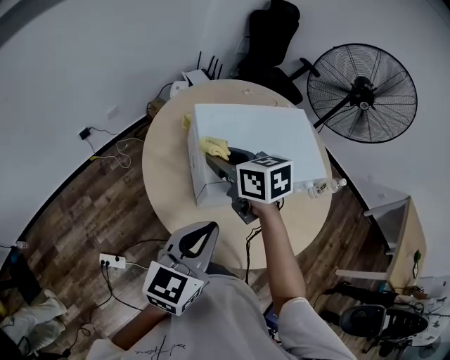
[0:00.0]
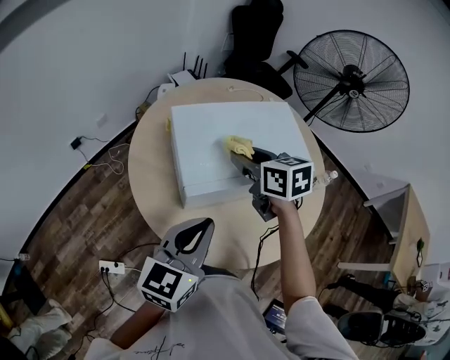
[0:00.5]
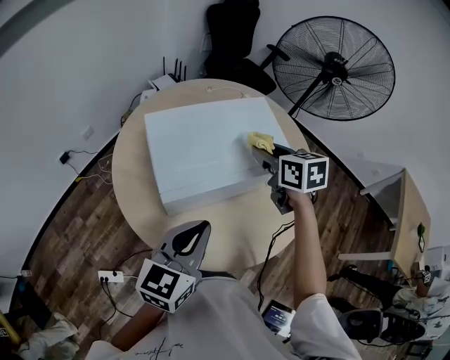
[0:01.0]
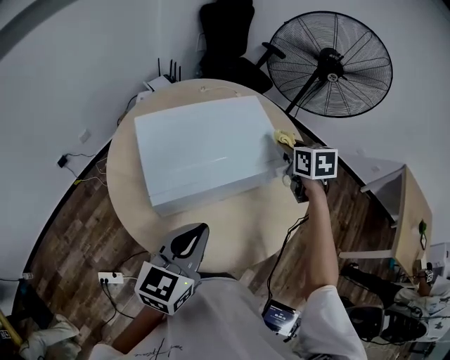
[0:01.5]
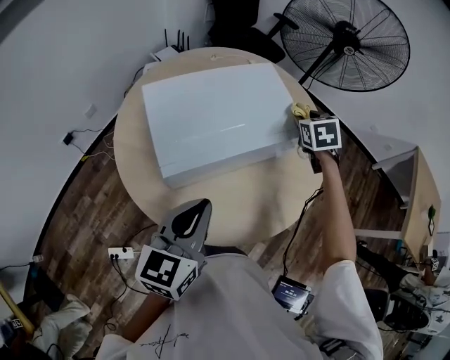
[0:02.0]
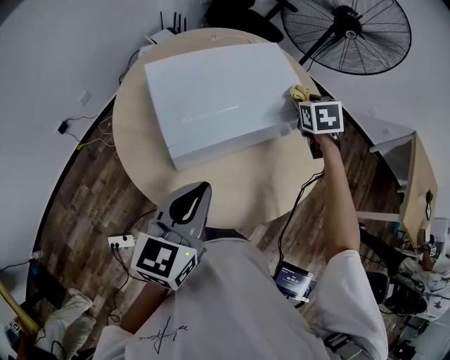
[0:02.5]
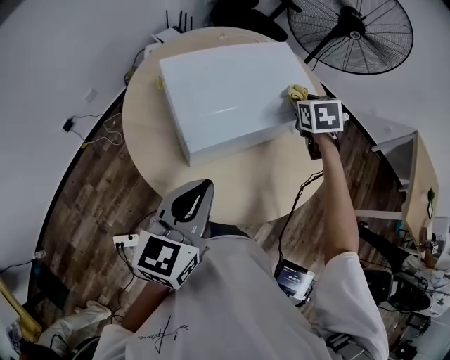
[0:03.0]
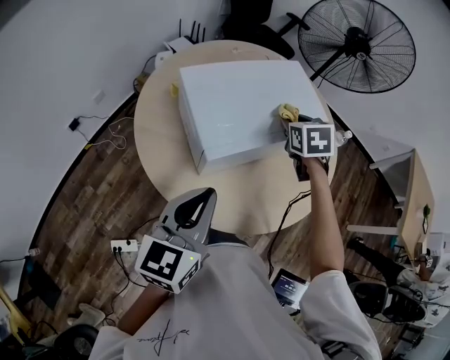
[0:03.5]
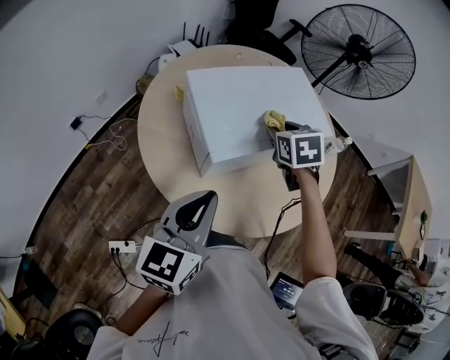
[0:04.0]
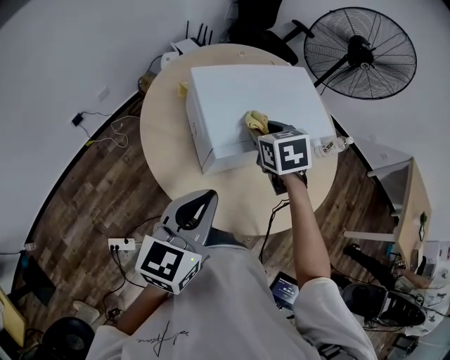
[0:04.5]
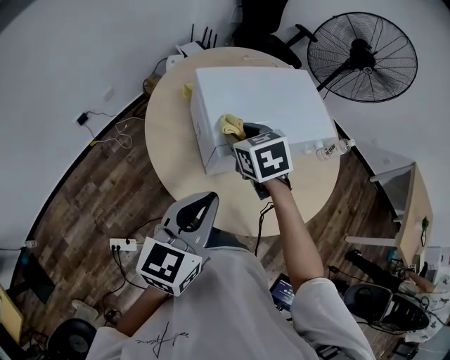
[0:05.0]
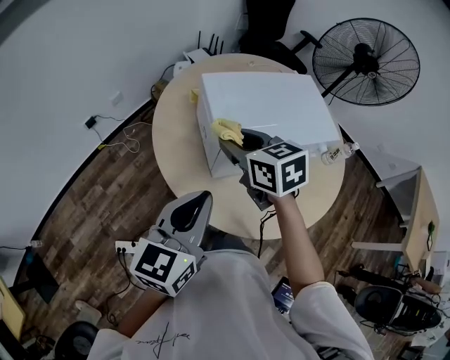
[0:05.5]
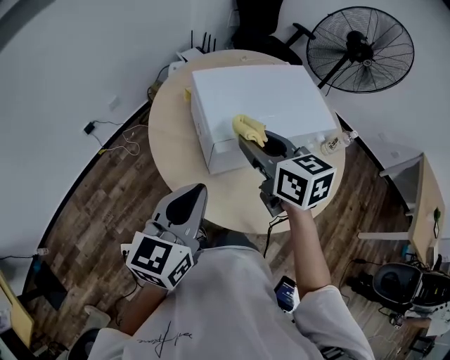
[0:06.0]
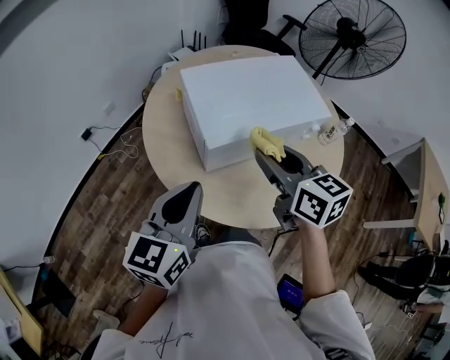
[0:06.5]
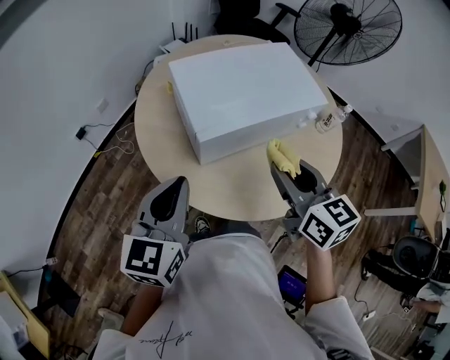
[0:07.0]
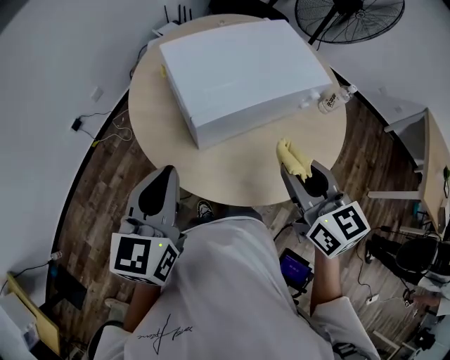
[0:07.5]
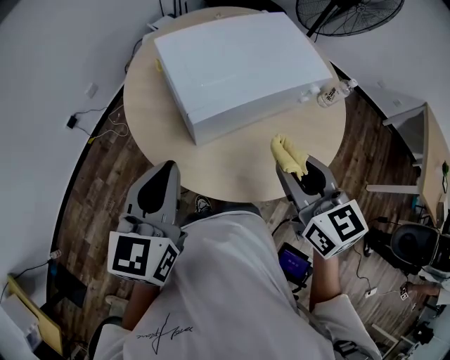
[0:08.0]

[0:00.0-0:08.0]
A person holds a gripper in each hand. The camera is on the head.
0:00.0 to 0:02.0: The left gripper ends up some 10 cm from where it was, while the right gripper moves some 40 cm, and changes its angle by approximately 50 degrees.
0:02.0 to 0:04.0: The right gripper shifts about 25 cm to the left and backward; the left gripper travels to the left and backward by some 10 cm.
0:04.0 to 0:06.0: The right gripper shifts approximately 20 cm backward, to the left and upward, and rotates about 40 degrees.
0:06.0 to 0:08.0: The right gripper goes about 15 cm to the right and backward.

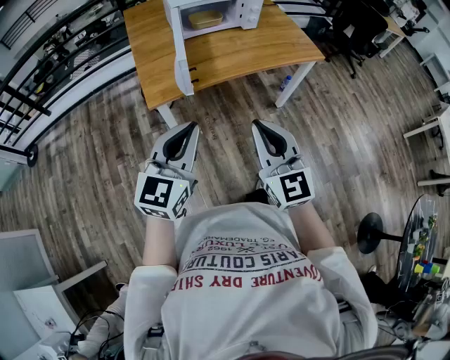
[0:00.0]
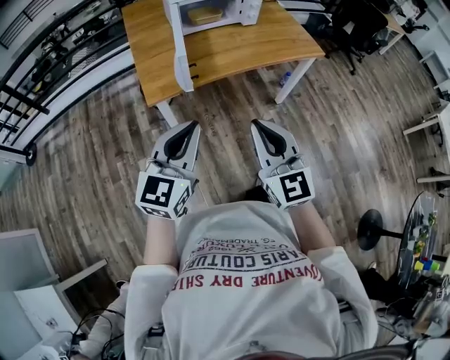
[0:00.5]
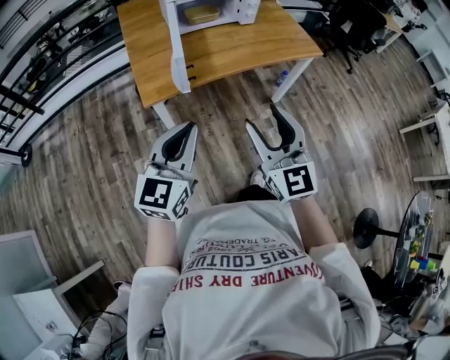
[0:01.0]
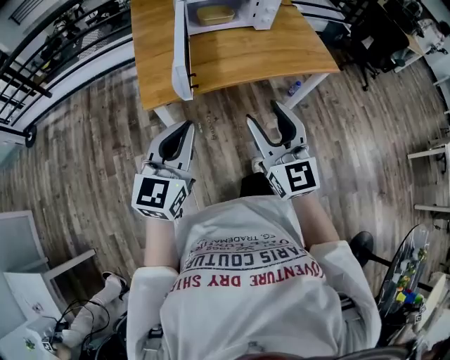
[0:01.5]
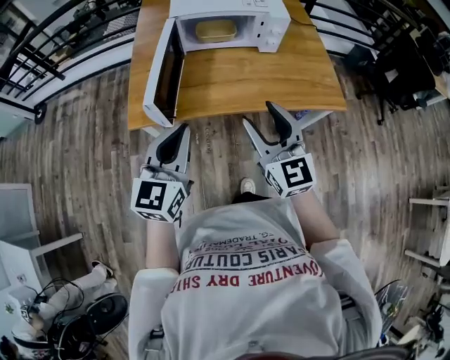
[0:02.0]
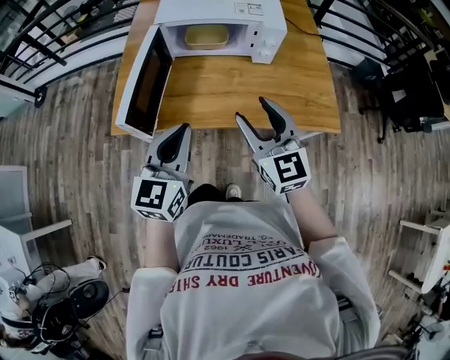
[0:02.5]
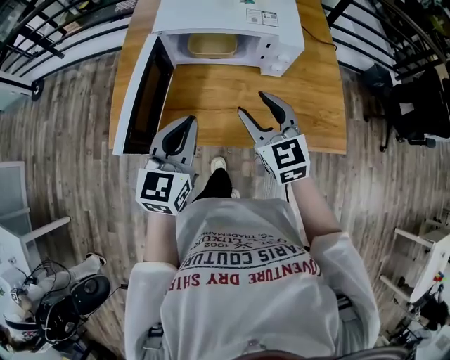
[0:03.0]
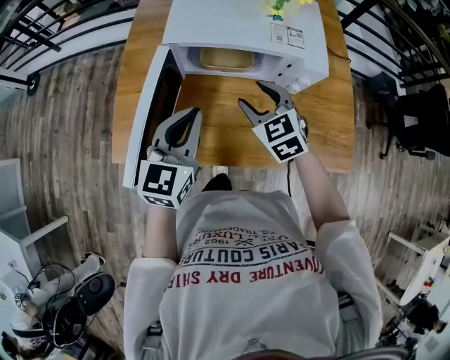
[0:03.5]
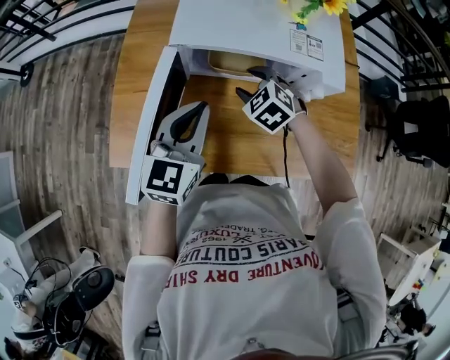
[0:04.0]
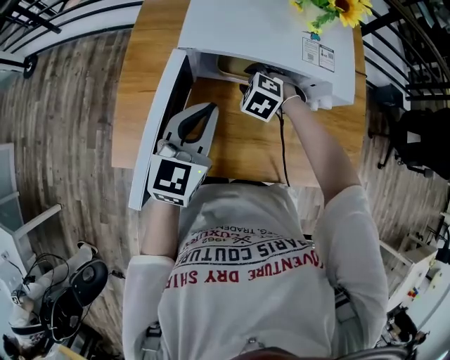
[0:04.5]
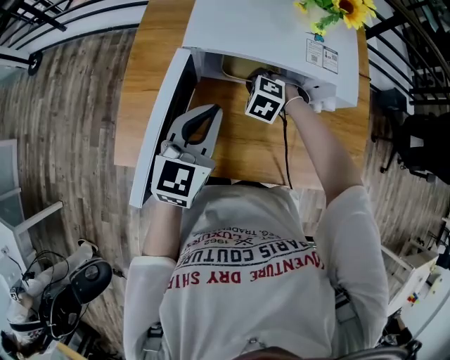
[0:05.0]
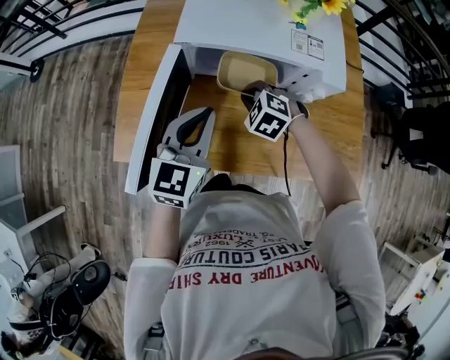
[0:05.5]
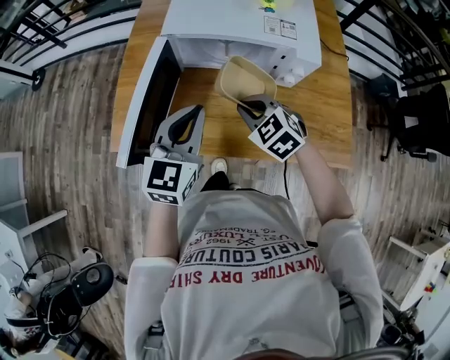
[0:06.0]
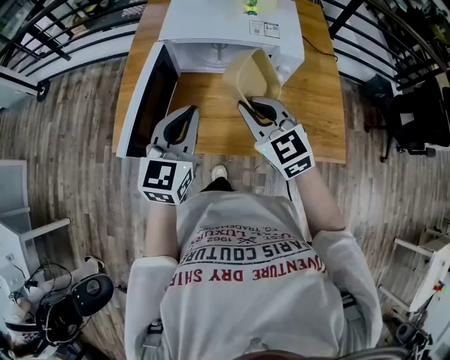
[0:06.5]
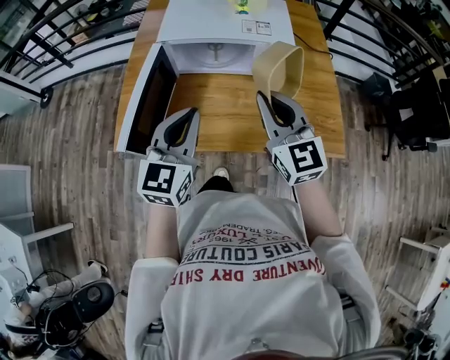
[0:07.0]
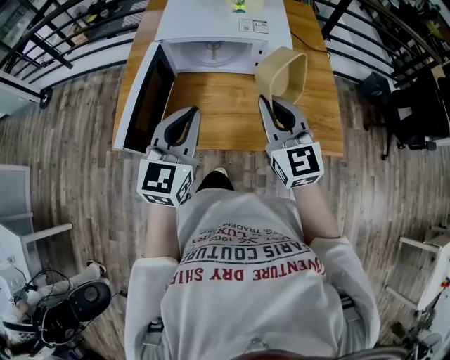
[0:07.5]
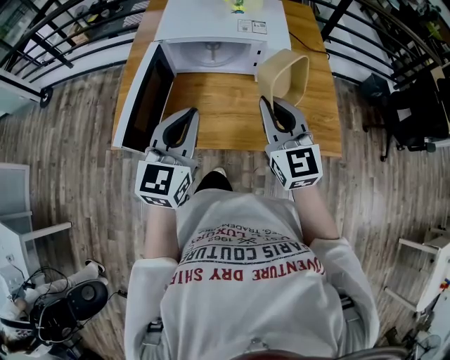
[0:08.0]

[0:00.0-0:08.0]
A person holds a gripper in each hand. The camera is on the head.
0:00.0 to 0:02.0: Both grippers travel together forward and to the right, roughly 25 cm. The right gripper opens, while the left gripper turns by approximately 20 degrees.
0:02.0 to 0:04.0: The left gripper is displaced forward by about 30 cm. Meanwhile the right gripper is displaced forward and downward by approximately 40 cm, and tips its fingers downward by roughly 50 degrees.
0:04.0 to 0:06.0: The left gripper travels backward by roughly 5 cm; the right gripper shifts about 15 cm backward, and closes up.
0:06.0 to 0:08.0: The right gripper shifts roughly 20 cm upward, to the right and backward, and tips its fingers upward by approximately 40 degrees; the left gripper moves backward, roughly 5 cm.

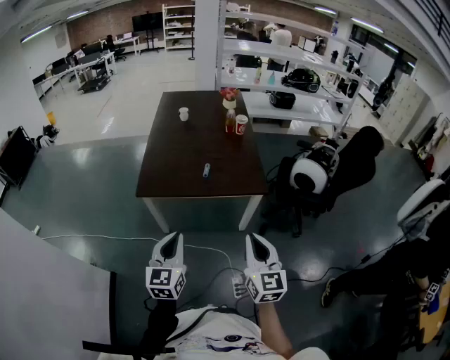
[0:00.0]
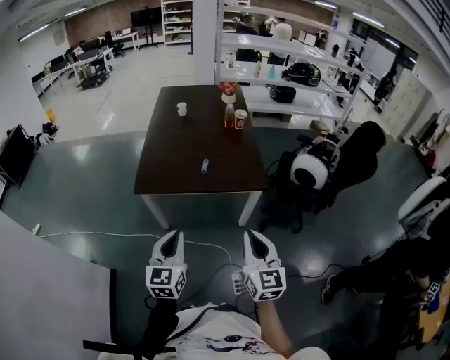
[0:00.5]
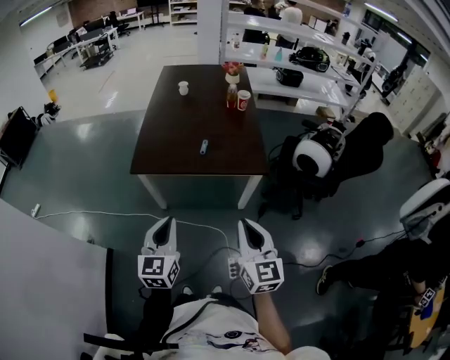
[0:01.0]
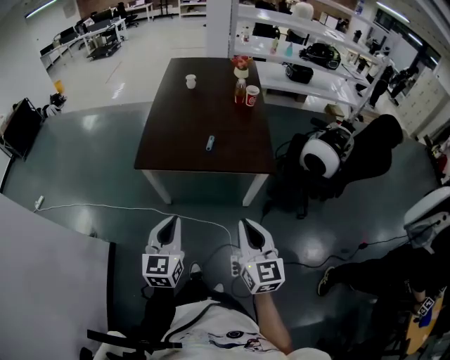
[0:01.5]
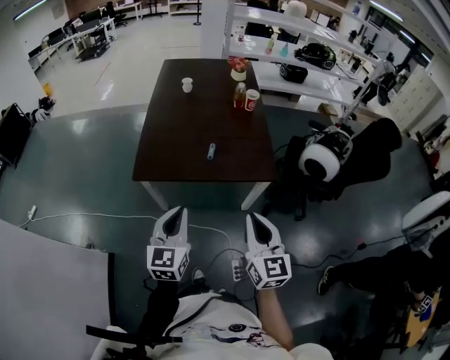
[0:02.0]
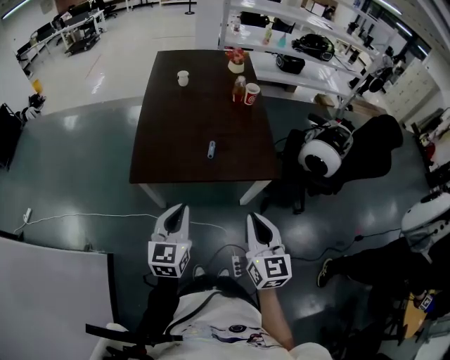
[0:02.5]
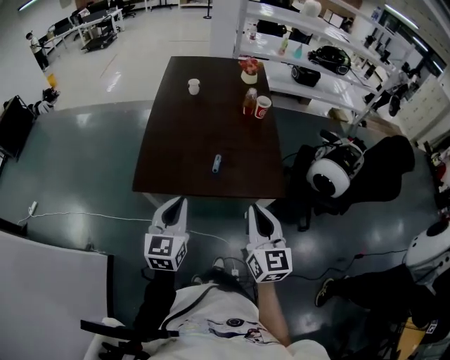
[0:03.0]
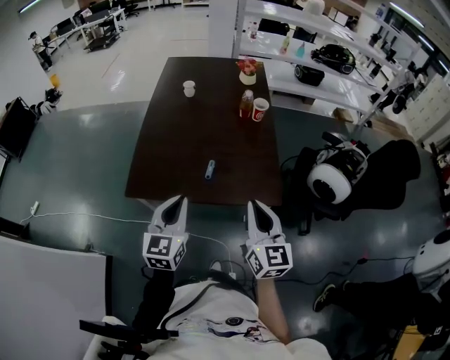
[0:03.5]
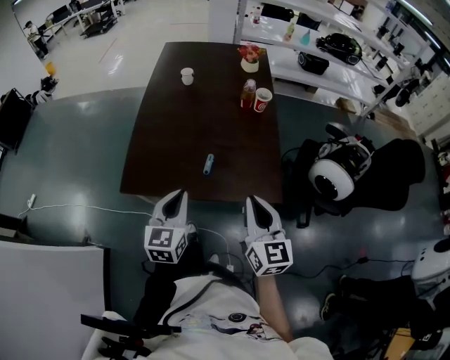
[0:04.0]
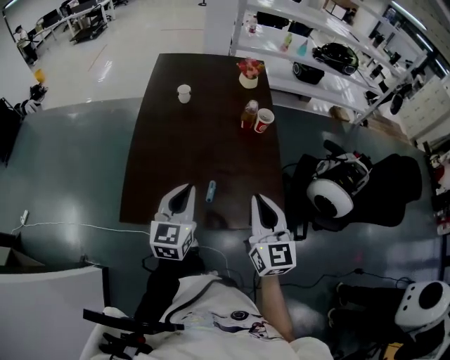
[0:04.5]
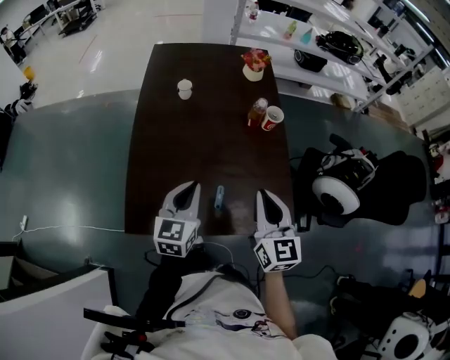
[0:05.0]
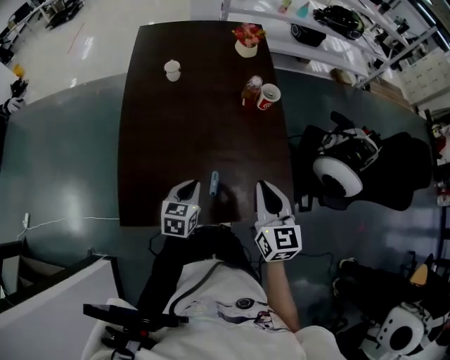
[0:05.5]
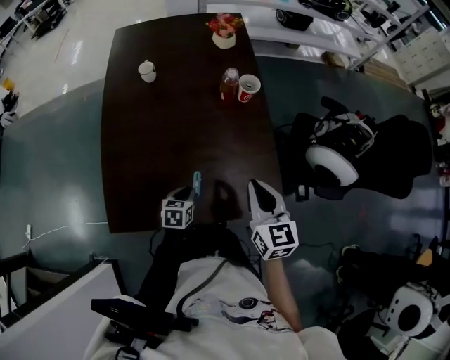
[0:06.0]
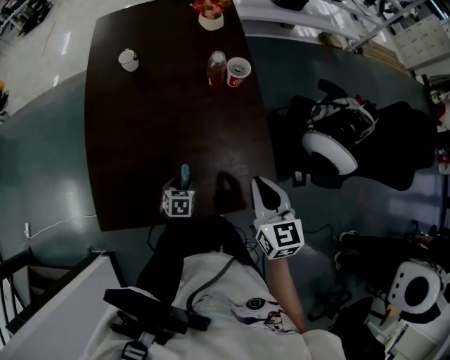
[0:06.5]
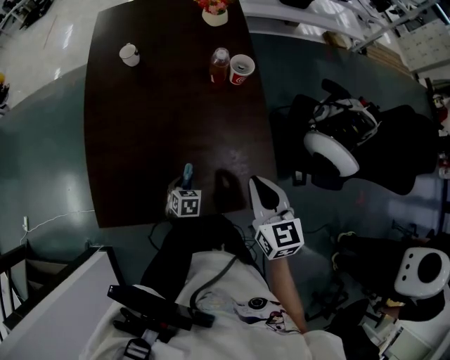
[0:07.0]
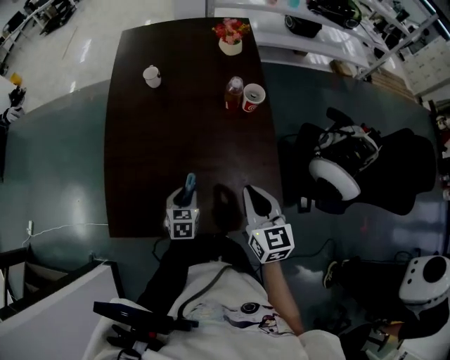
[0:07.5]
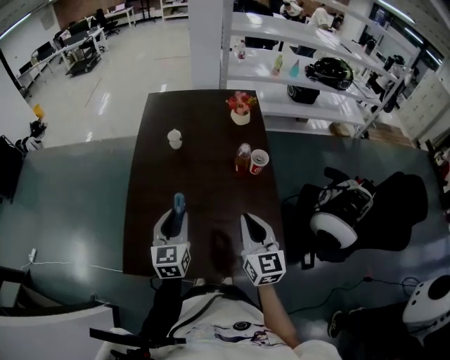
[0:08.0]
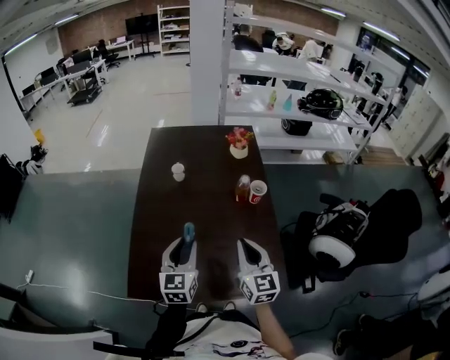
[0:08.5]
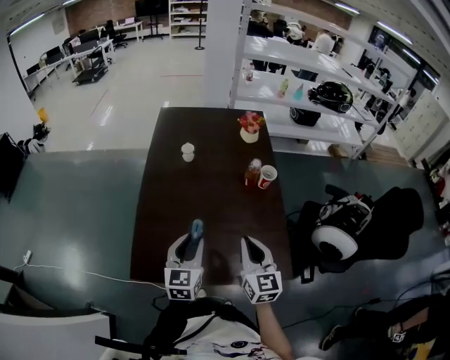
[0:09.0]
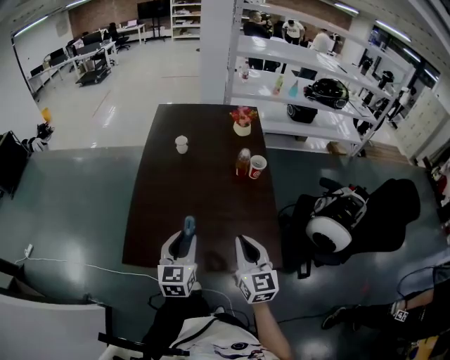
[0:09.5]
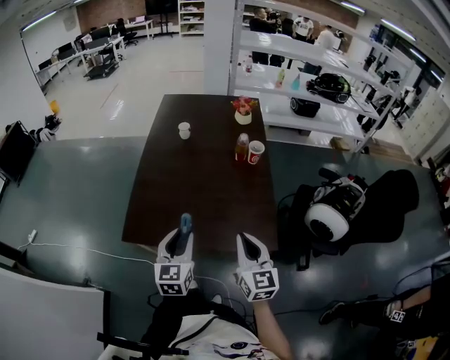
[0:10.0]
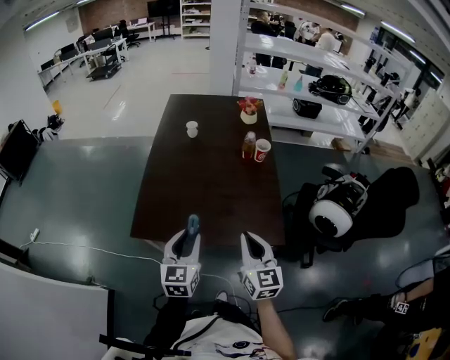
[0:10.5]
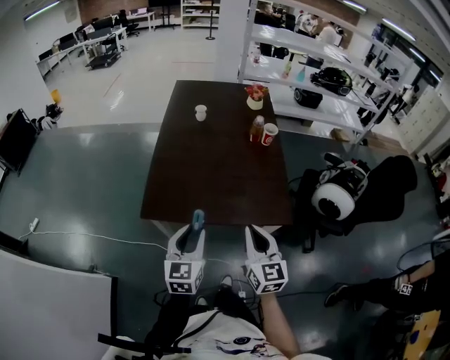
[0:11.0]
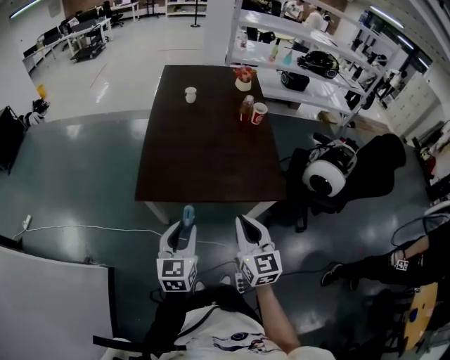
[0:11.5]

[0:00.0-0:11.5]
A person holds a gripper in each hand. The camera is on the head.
0:00.0 to 0:02.0: Both grippers move forward, about 10 cm.
0:02.0 to 0:04.0: The grippers both shift forward by some 20 cm.
0:04.0 to 0:06.0: The left gripper heads downward and forward, covering approximately 30 cm, and tilts its fingers about 30 degrees downward; the right gripper shifts some 15 cm forward.
0:06.0 to 0:07.5: The left gripper goes downward and returns, about 10 cm each way.
0:07.5 to 0:09.5: The left gripper goes some 20 cm upward, and angles its fingers upward, by approximately 30 degrees. The right gripper shifts roughly 10 cm backward, upward and to the left.
0:09.5 to 0:11.5: Both grippers move backward, about 25 cm.
